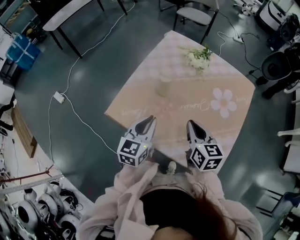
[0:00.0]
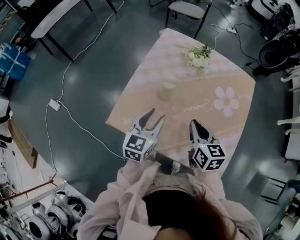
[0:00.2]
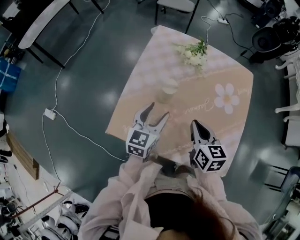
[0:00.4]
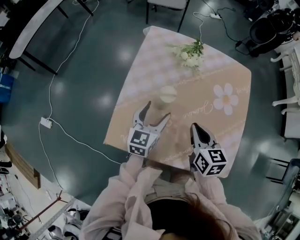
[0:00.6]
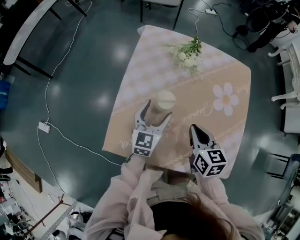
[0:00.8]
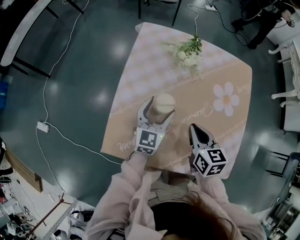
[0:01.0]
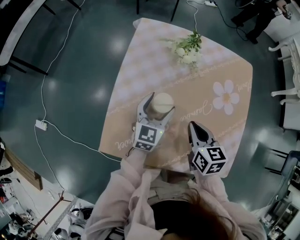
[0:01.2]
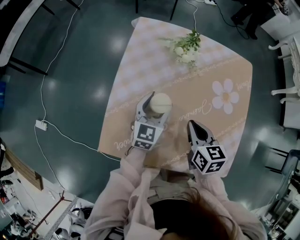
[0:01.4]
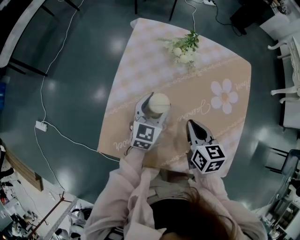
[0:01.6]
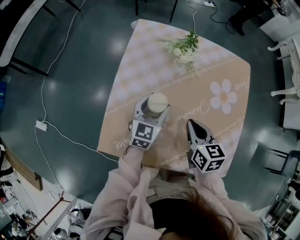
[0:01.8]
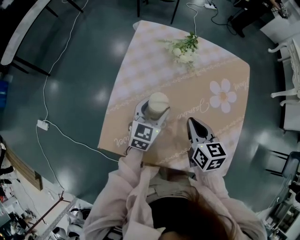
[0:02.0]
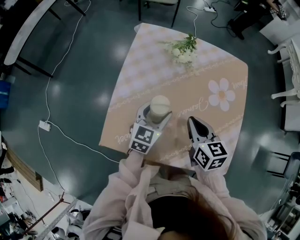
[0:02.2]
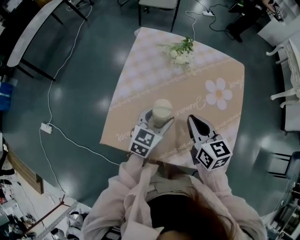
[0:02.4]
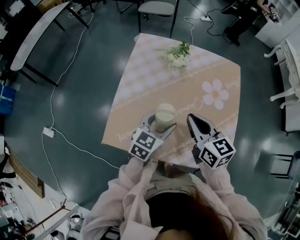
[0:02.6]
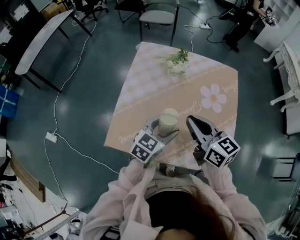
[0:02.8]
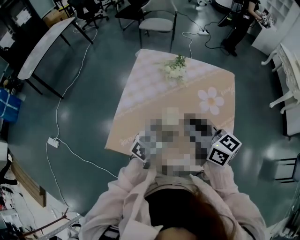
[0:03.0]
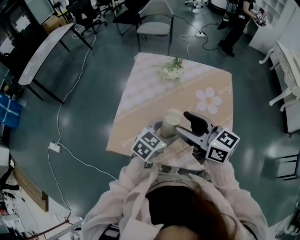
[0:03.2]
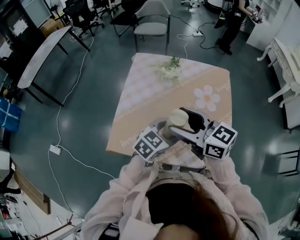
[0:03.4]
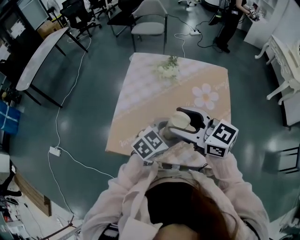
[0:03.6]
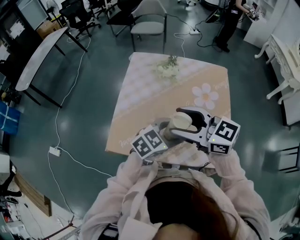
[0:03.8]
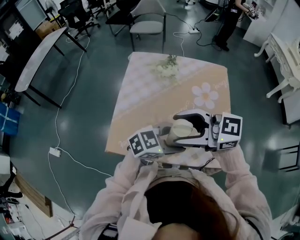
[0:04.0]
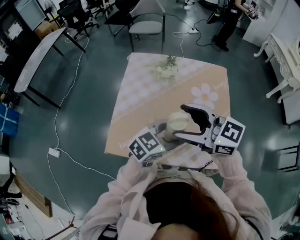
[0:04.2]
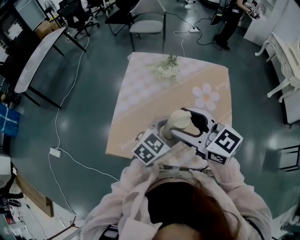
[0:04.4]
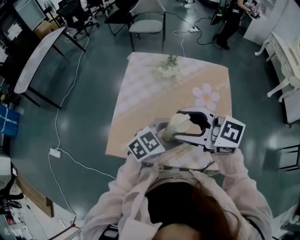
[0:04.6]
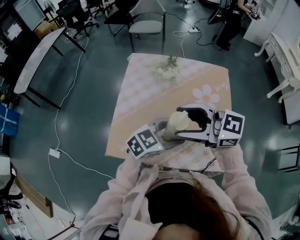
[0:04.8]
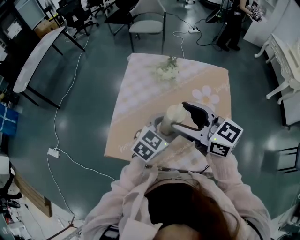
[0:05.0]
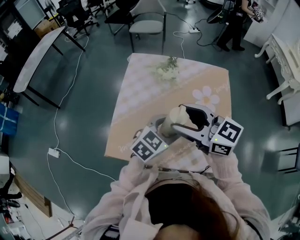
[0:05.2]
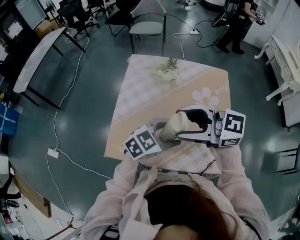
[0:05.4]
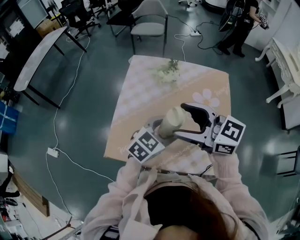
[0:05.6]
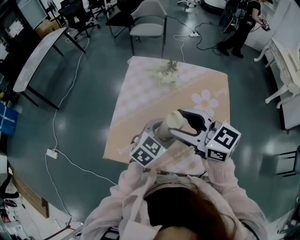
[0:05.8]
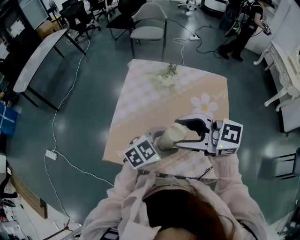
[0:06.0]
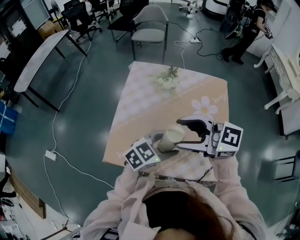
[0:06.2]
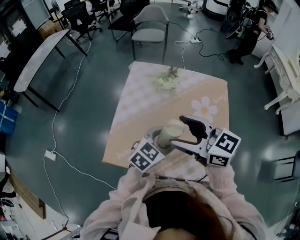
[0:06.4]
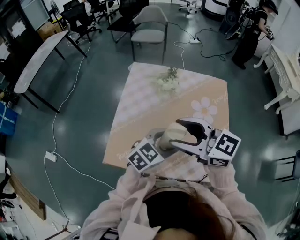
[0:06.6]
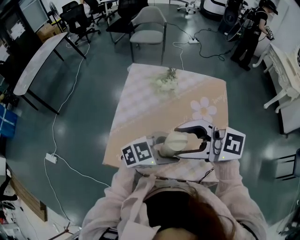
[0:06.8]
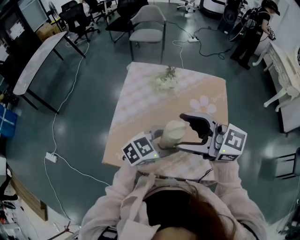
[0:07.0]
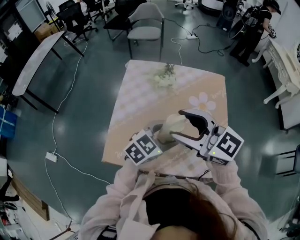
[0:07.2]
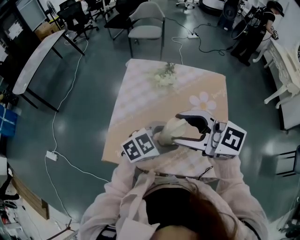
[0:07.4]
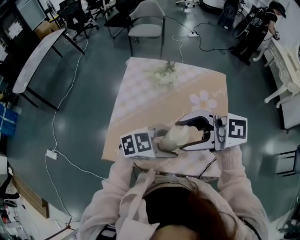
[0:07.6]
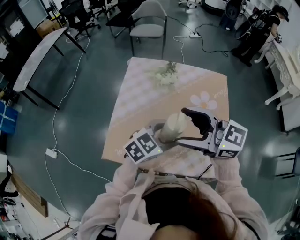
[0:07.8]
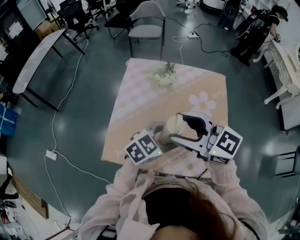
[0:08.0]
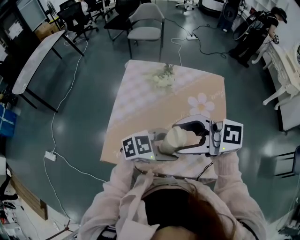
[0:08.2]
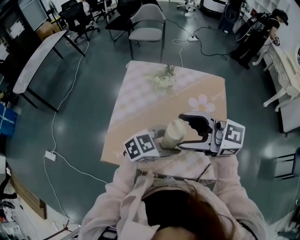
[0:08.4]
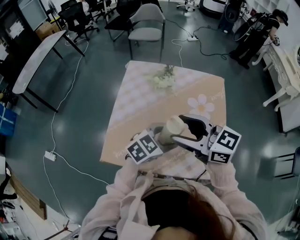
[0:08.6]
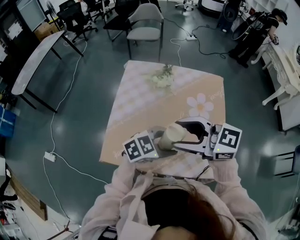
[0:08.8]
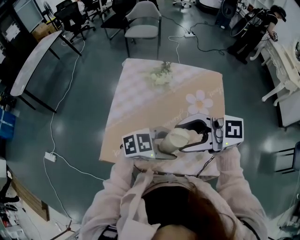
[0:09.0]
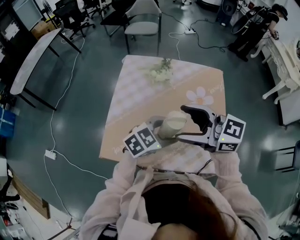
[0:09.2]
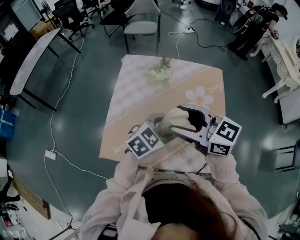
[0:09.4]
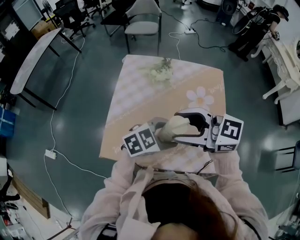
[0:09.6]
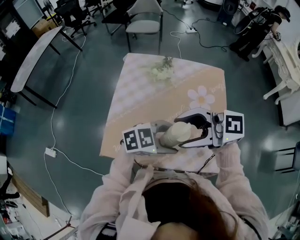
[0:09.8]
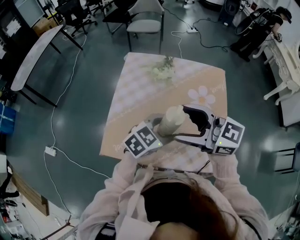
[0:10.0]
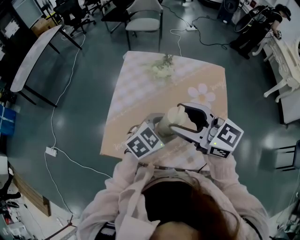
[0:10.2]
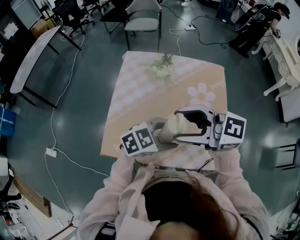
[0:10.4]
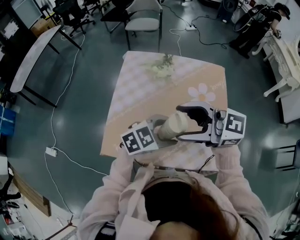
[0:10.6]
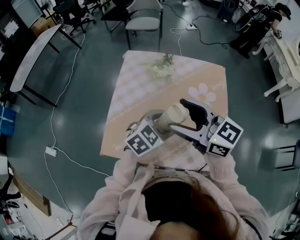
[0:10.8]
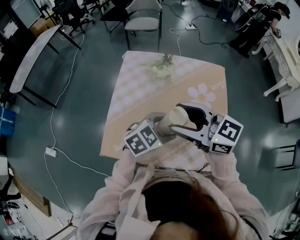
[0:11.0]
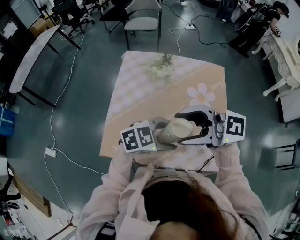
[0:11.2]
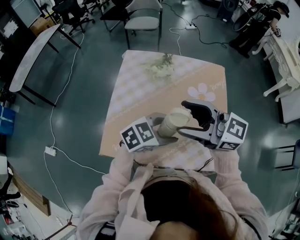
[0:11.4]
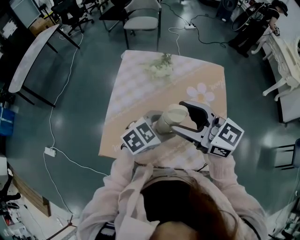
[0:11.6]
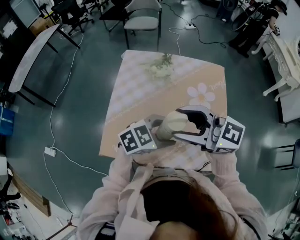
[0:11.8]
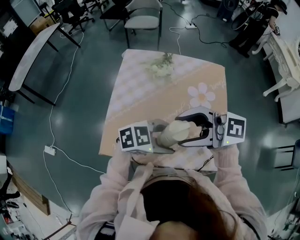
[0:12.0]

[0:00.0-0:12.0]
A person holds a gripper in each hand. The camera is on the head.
0:00.0 to 0:01.6: The right gripper travels forward and downward by approximately 10 cm; the left gripper goes roughly 20 cm forward and downward, rotates approximately 20 degrees, and opens.
0:01.6 to 0:03.0: The right gripper is displaced upward and backward by some 20 cm, and points its fingers roughly 30 degrees further upward, while the left gripper is displaced backward, upward and to the right by approximately 20 cm, and rotates approximately 20 degrees.
0:03.0 to 0:04.4: The right gripper swivels about 20 degrees, and opens up.
0:04.4 to 0:06.0: The right gripper changes its angle by some 30 degrees.
0:06.0 to 0:07.6: The left gripper swivels approximately 20 degrees.

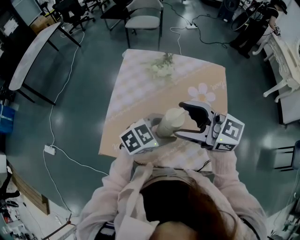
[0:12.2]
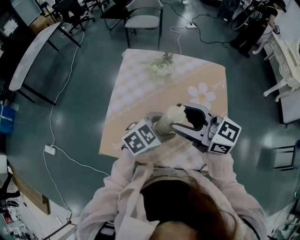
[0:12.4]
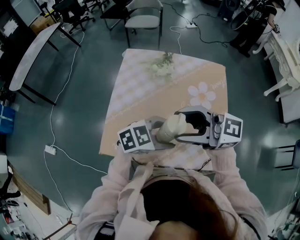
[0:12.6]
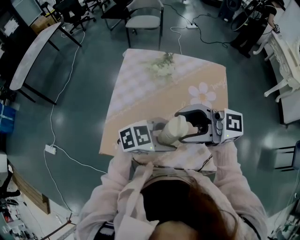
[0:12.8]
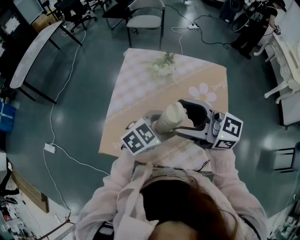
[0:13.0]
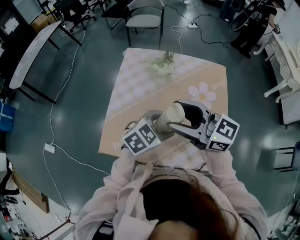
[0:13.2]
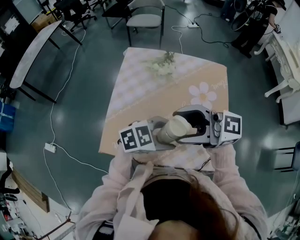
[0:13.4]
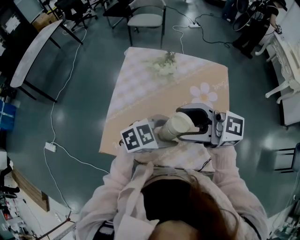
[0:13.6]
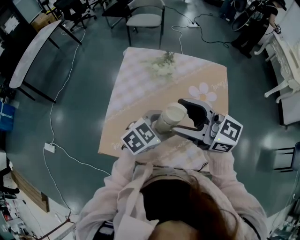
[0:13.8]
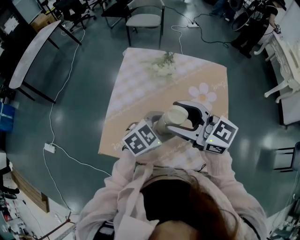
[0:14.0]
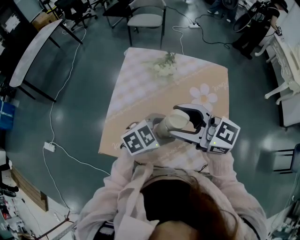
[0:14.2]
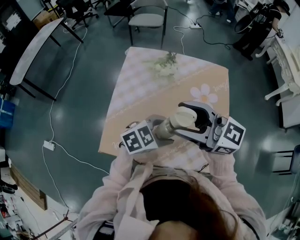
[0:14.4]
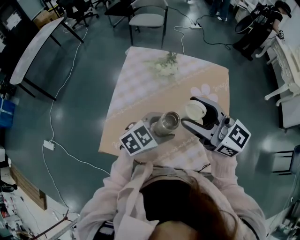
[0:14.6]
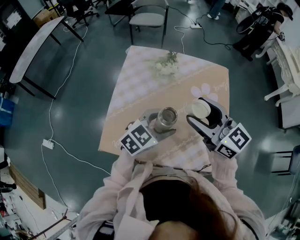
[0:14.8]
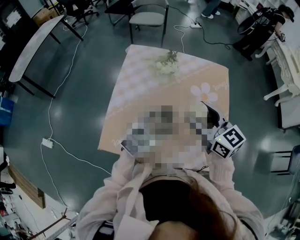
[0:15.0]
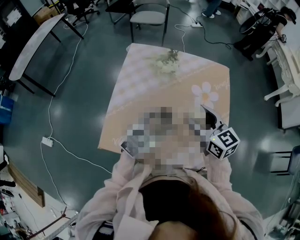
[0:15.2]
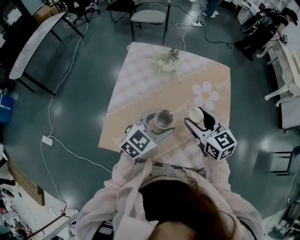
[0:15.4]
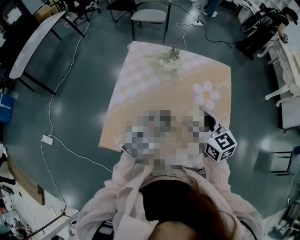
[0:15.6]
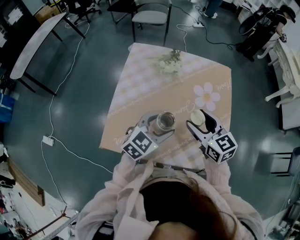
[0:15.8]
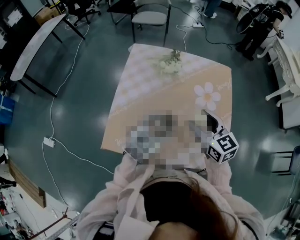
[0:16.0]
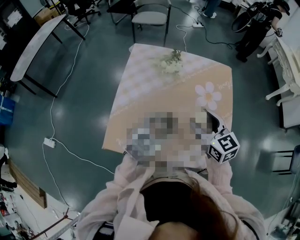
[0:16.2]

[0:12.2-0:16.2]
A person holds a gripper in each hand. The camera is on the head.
0:13.6 to 0:14.8: The left gripper ends up about 5 cm from where it was, and rotates some 20 degrees. The right gripper shifts by some 10 cm, and turns by about 40 degrees.
0:14.8 to 0:16.2: The right gripper heads downward, covering roughly 10 cm, and changes its angle by about 20 degrees.

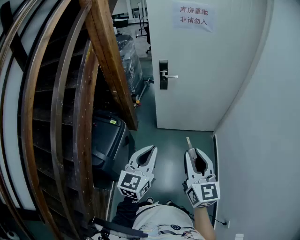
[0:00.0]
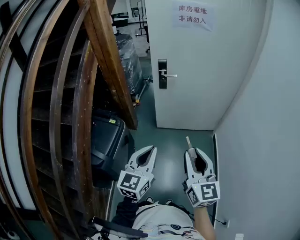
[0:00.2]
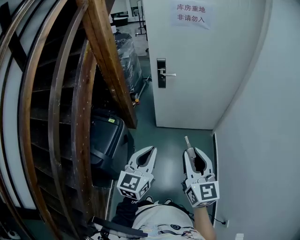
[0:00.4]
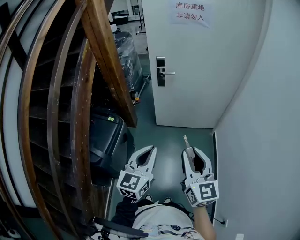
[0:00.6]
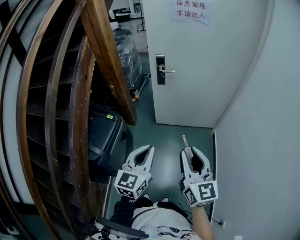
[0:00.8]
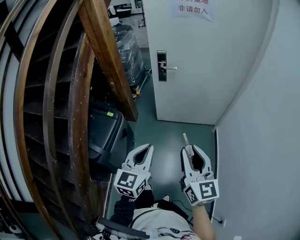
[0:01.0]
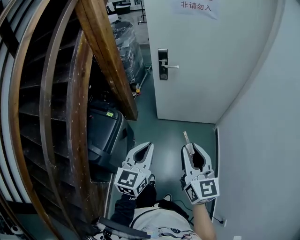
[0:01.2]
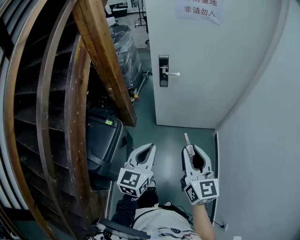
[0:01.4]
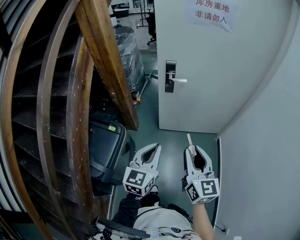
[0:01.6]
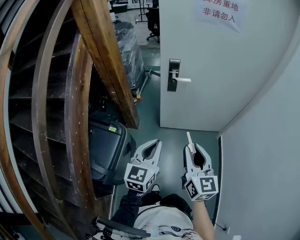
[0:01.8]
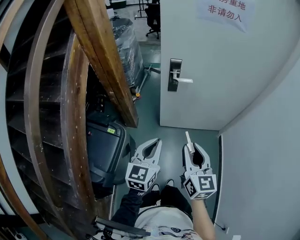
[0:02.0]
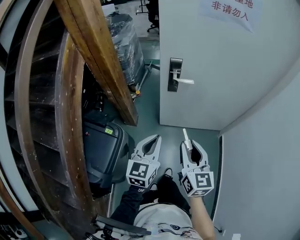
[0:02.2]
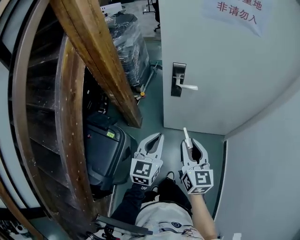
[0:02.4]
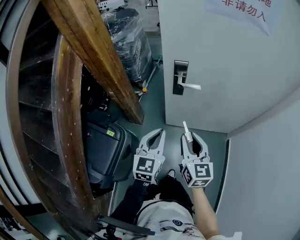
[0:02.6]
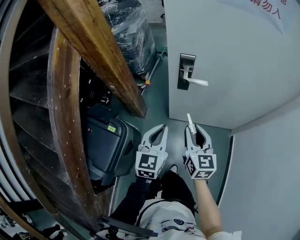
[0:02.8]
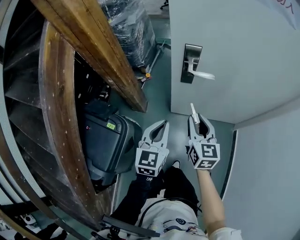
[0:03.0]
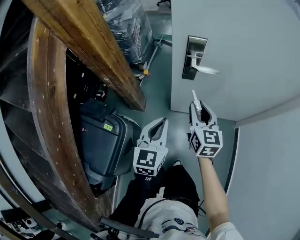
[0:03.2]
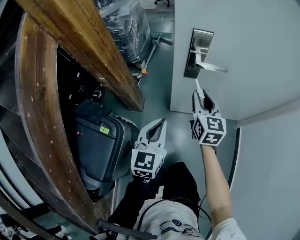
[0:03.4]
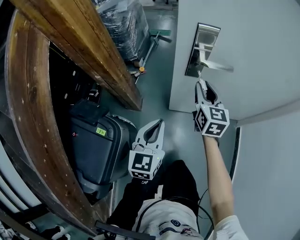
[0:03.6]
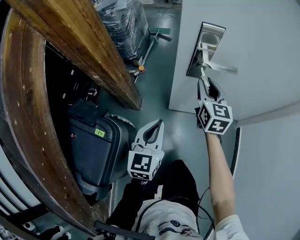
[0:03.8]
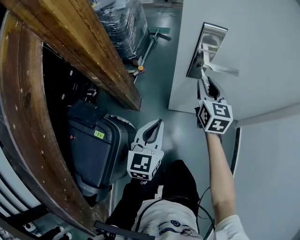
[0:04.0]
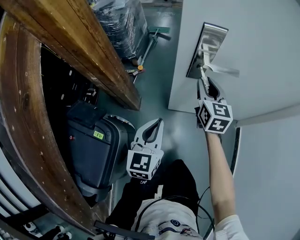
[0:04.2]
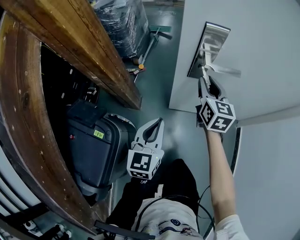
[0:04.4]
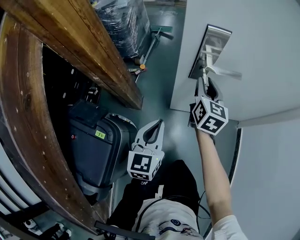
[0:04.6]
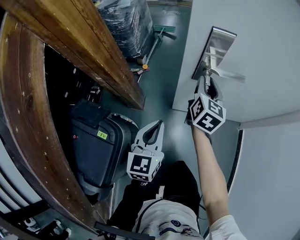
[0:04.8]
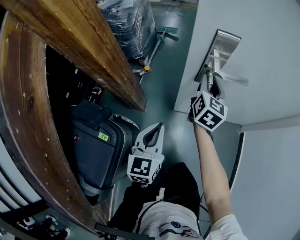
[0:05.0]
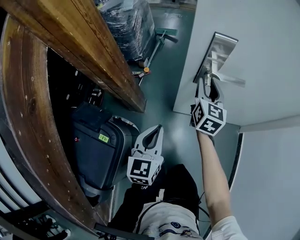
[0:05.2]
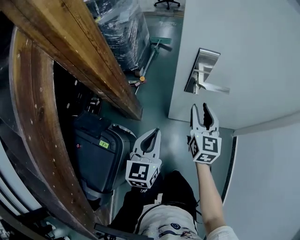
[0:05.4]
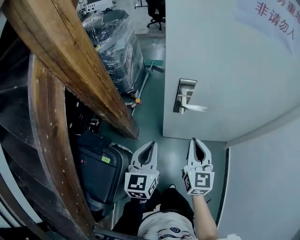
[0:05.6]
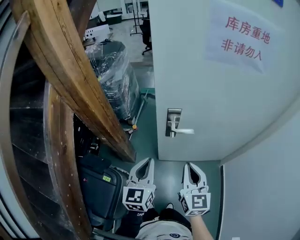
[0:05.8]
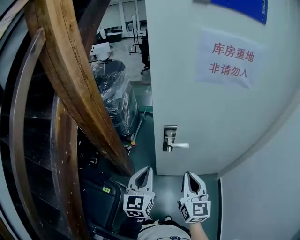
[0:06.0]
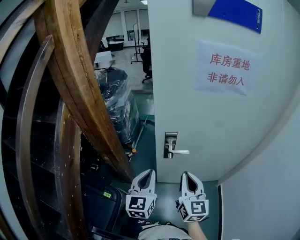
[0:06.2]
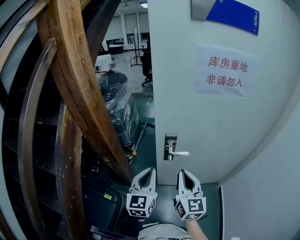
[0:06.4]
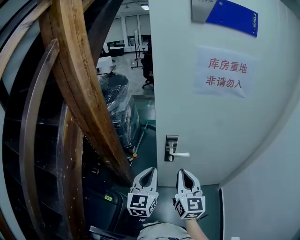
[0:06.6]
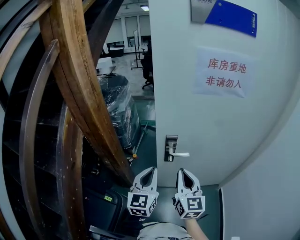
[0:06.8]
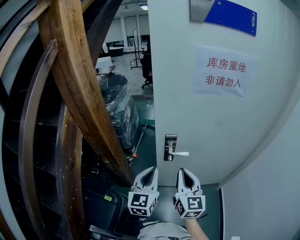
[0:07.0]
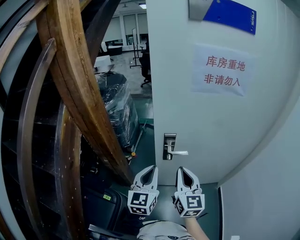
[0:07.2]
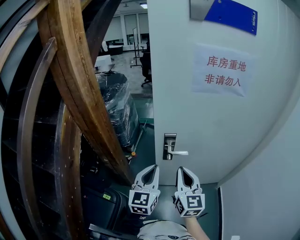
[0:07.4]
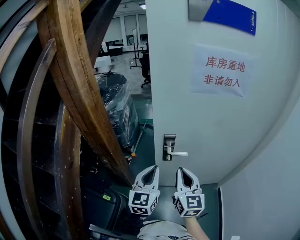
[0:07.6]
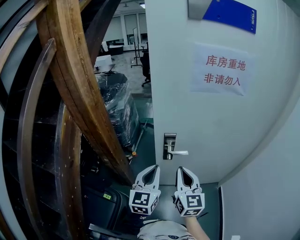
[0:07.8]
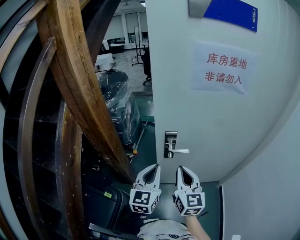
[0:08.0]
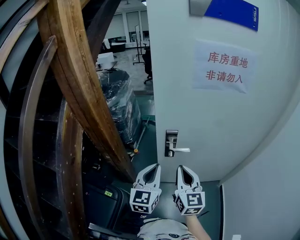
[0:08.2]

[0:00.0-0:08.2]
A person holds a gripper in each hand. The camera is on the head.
0:00.0 to 0:01.6: The two grippers go about 15 cm forward.
0:01.6 to 0:03.2: The grippers both shift forward and downward by about 40 cm.
0:03.2 to 0:05.0: The right gripper moves forward, some 15 cm, and rotates approximately 20 degrees; the left gripper heads downward, to the left and forward, covering roughly 10 cm.
0:05.0 to 0:06.6: The right gripper goes approximately 35 cm upward and backward, turns by about 20 degrees, and closes its fingers. The left gripper is displaced upward by about 30 cm.
0:06.6 to 0:08.2: The grippers make only small movements.
